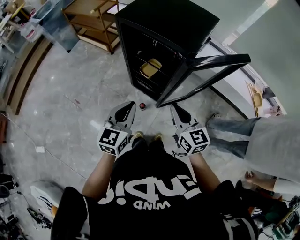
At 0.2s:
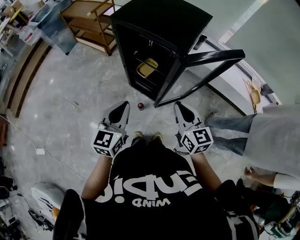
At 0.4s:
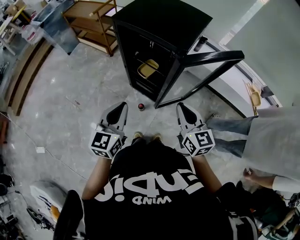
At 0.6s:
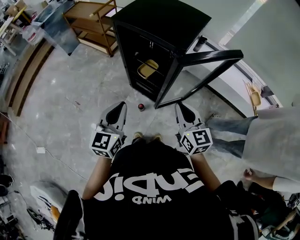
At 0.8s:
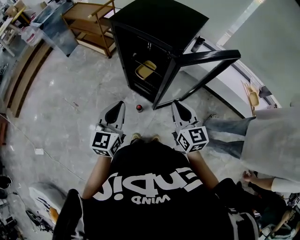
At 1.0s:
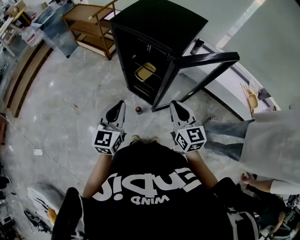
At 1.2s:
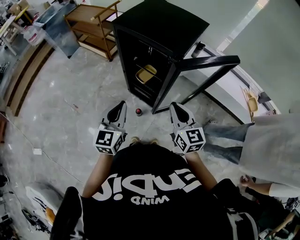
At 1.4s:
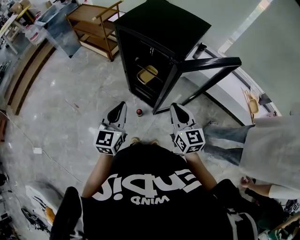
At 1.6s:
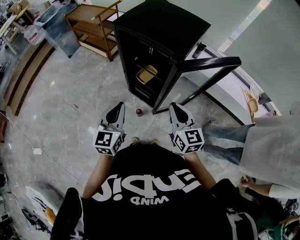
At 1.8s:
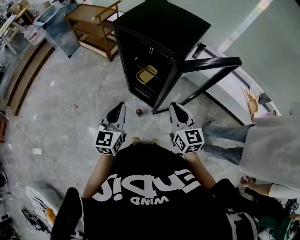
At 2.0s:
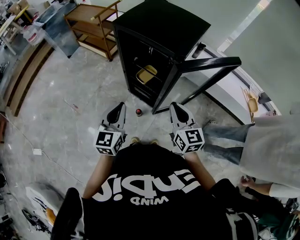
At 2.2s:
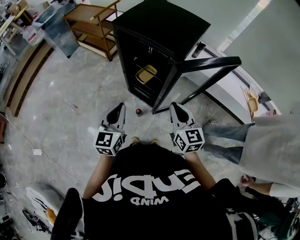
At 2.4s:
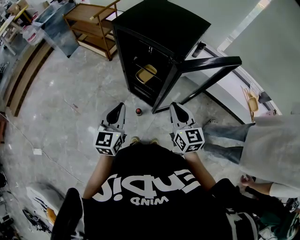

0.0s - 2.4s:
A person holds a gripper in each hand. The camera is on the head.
0.0s - 2.4s: The grippers make only small movements.

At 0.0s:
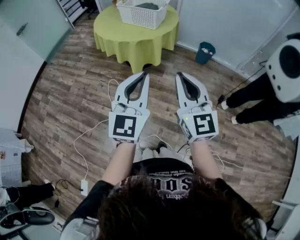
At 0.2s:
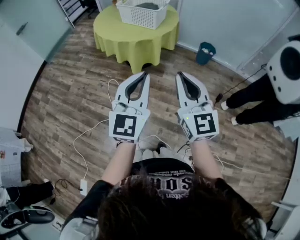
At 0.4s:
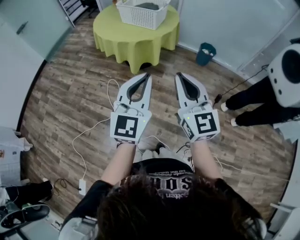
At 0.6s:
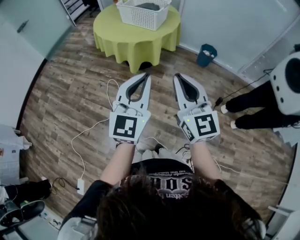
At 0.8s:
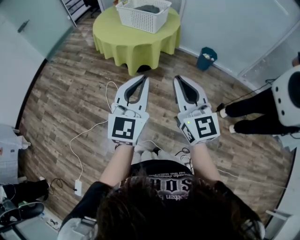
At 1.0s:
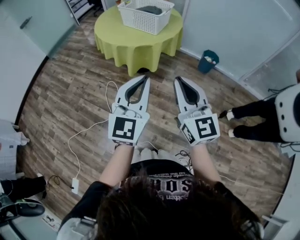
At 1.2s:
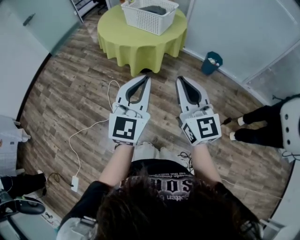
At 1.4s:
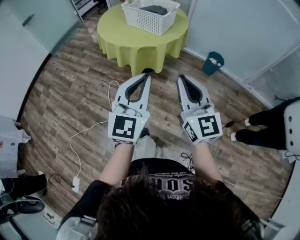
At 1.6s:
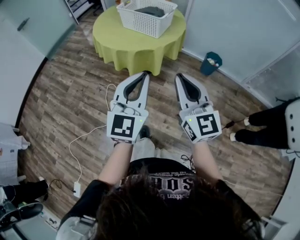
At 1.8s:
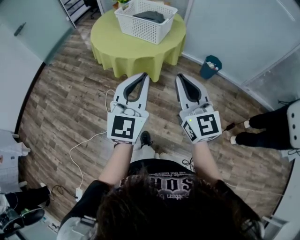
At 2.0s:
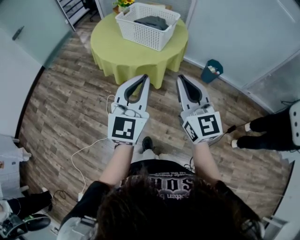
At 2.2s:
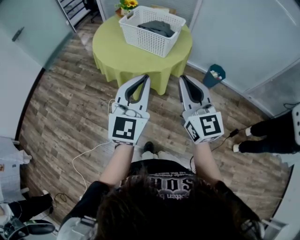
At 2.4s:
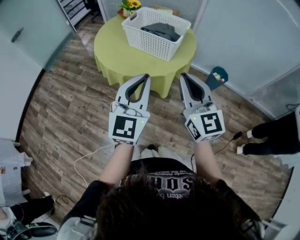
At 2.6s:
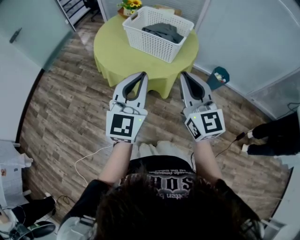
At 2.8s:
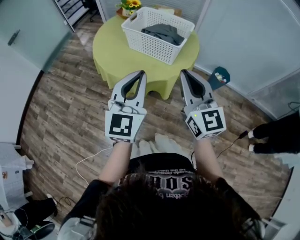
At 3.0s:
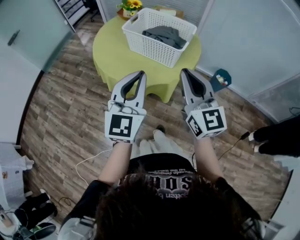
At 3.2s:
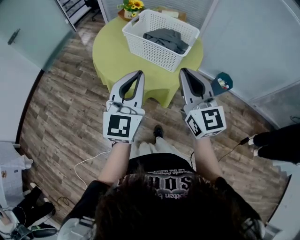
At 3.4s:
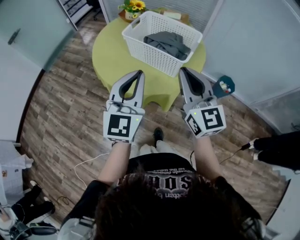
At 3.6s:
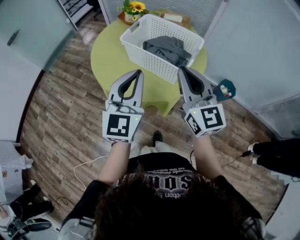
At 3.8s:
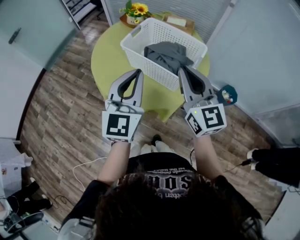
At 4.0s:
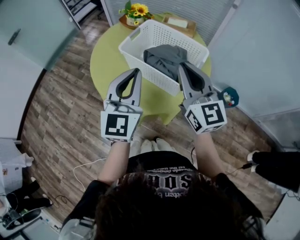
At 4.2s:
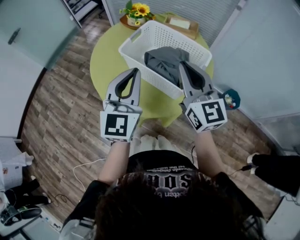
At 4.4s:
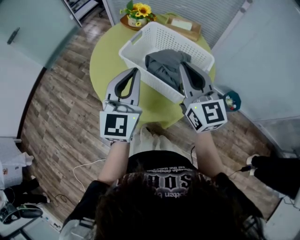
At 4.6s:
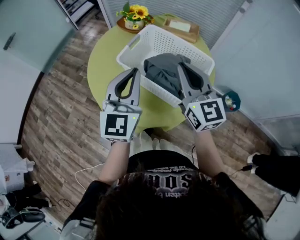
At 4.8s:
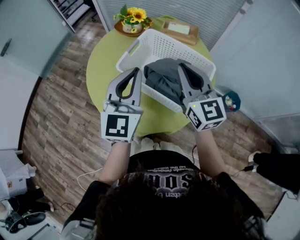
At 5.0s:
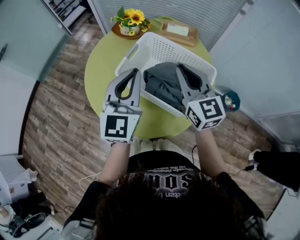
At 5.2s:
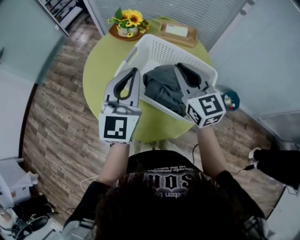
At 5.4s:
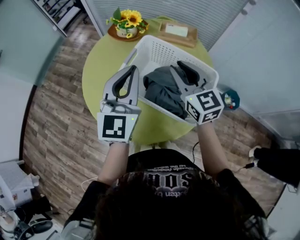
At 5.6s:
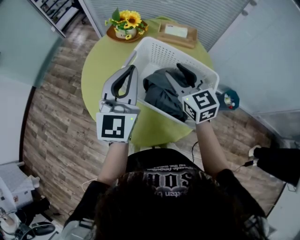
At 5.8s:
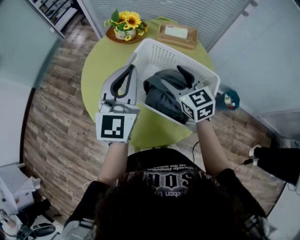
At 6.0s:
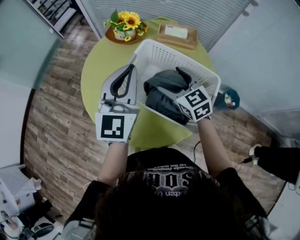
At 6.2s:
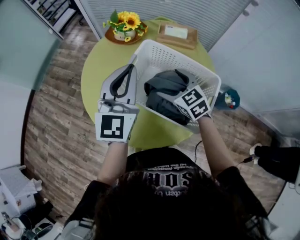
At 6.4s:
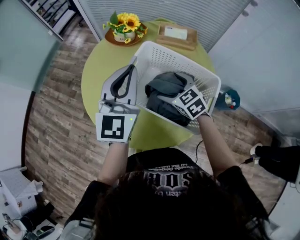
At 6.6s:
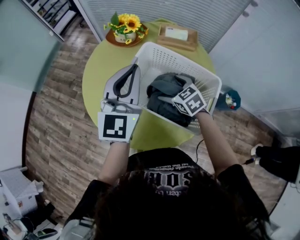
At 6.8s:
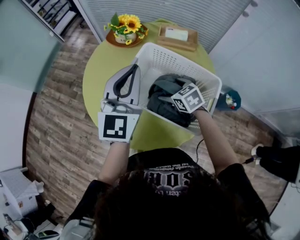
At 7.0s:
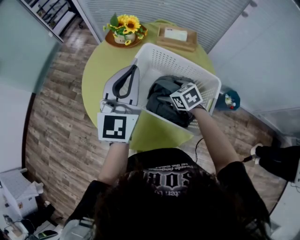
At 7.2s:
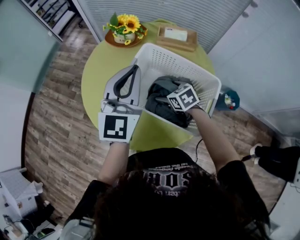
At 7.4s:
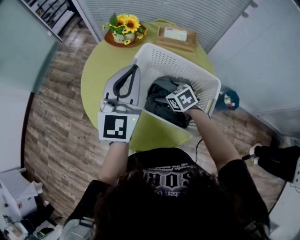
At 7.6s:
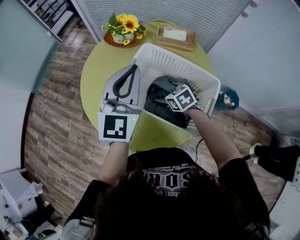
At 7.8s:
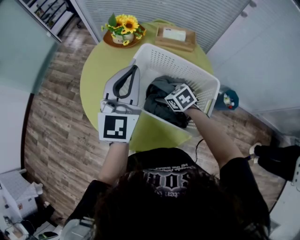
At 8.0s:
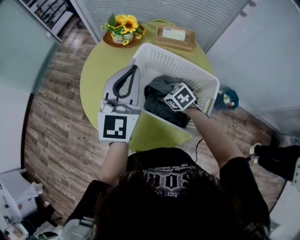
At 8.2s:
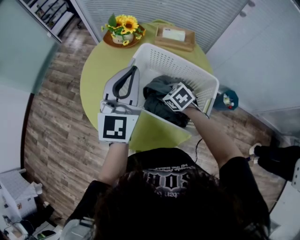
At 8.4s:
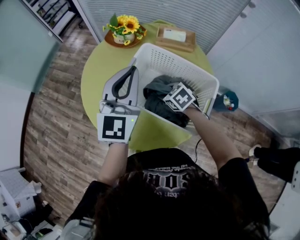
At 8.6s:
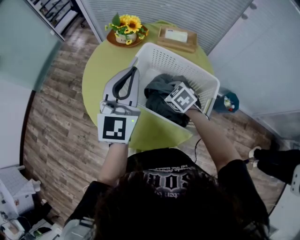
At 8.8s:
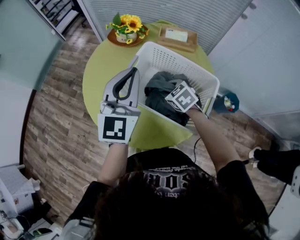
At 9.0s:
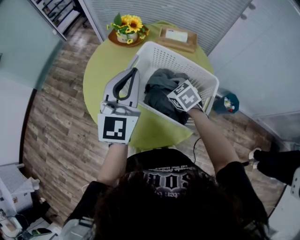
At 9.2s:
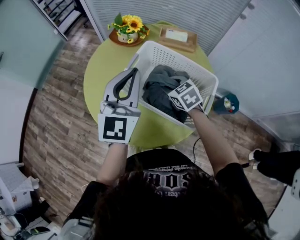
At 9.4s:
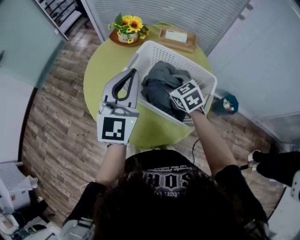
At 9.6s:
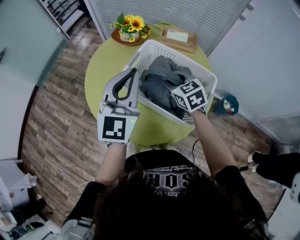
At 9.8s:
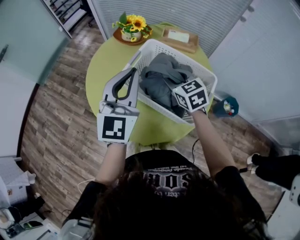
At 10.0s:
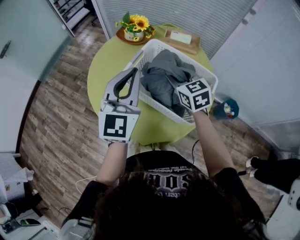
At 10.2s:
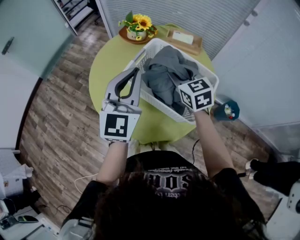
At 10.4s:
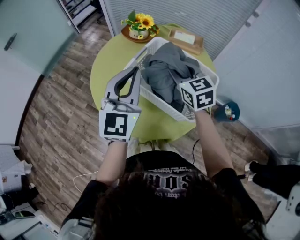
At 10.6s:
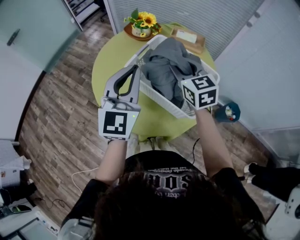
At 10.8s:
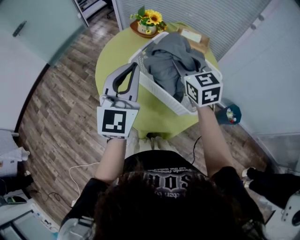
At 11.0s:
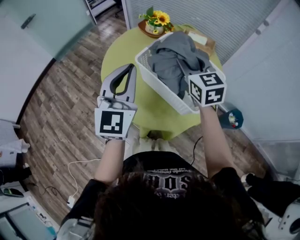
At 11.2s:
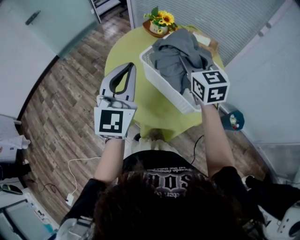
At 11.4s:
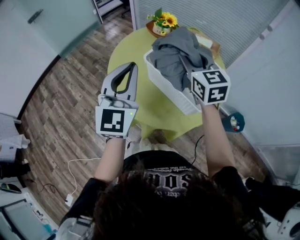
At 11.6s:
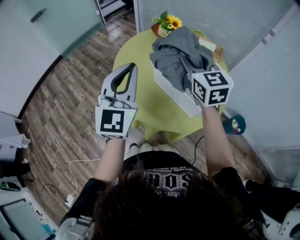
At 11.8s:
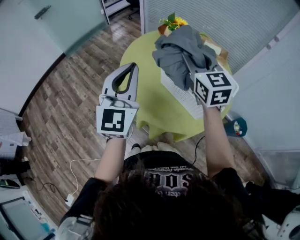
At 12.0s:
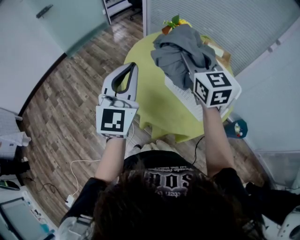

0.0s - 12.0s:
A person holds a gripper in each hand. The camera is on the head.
0.0s - 1.6s: The grippers both shift forward by some 15 cm.
1.6s - 3.0s: Both grippers move forward, approximately 25 cm.
3.0s - 4.4s: Both grippers travel together forward, approximately 25 cm.
4.4s - 6.0s: The left gripper shifts some 15 cm forward, while the right gripper is displaced forward and downward by some 20 cm, swivels about 30 degrees, and opens.
6.0s - 7.6s: The right gripper is displaced downward by some 15 cm, and rotates approximately 30 degrees.
7.6s - 9.0s: The right gripper travels upward by approximately 5 cm, and closes its fingers.
9.0s - 10.4s: The right gripper moves upward, some 15 cm, and rotates about 30 degrees. Meanwhile the left gripper moves backward, some 5 cm.
10.4s - 12.0s: The right gripper goes approximately 20 cm to the left and upward; the left gripper heads to the left, covering about 15 cm.

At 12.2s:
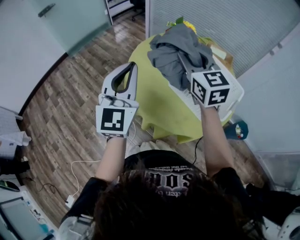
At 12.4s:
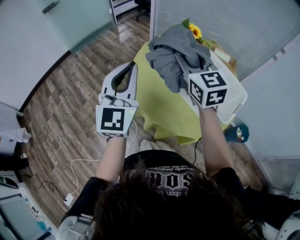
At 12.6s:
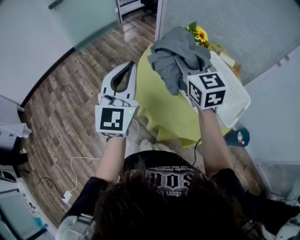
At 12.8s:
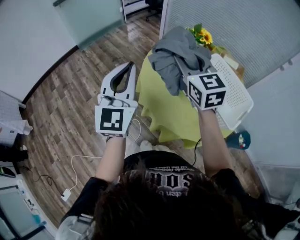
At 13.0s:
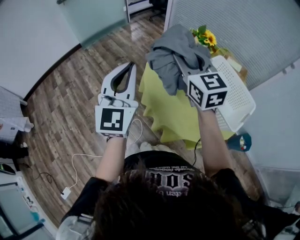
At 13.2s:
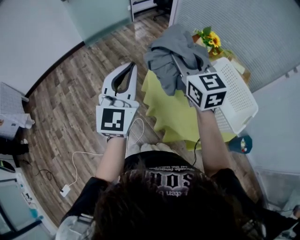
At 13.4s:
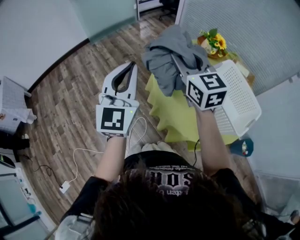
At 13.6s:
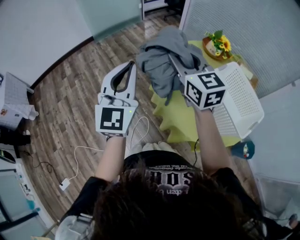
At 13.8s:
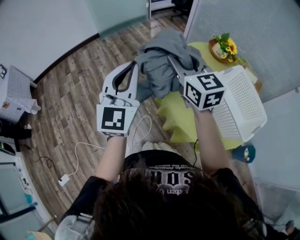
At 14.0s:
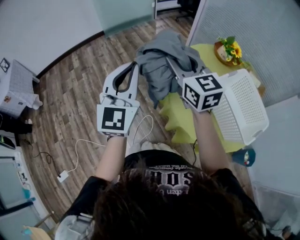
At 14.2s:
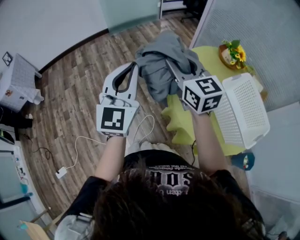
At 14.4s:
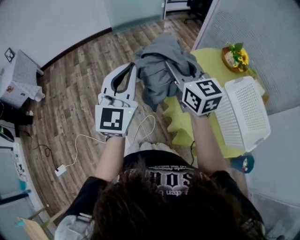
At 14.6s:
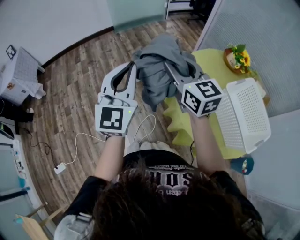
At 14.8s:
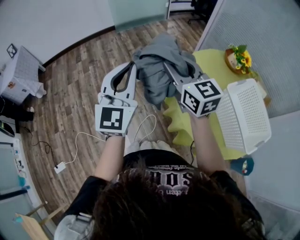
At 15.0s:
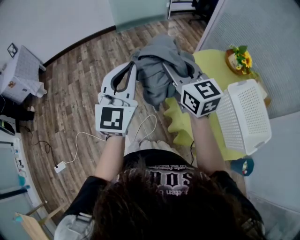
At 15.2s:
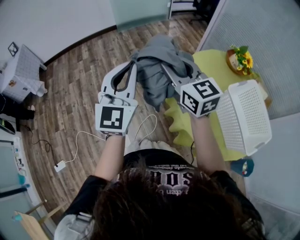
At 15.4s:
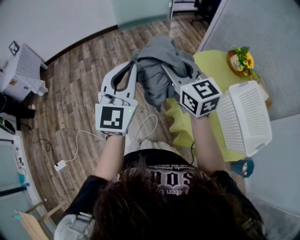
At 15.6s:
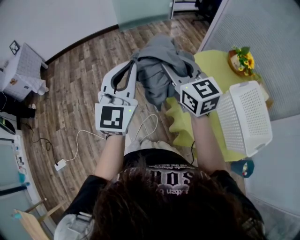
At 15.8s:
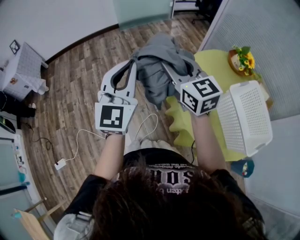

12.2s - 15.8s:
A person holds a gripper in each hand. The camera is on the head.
12.2s - 14.0s: The grippers both shift to the left by some 20 cm. The right gripper turns by about 20 degrees.
14.0s - 15.8s: The grippers both shift to the left by approximately 5 cm.

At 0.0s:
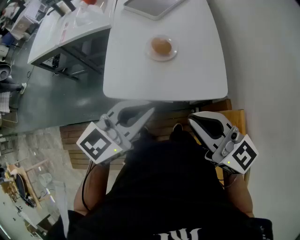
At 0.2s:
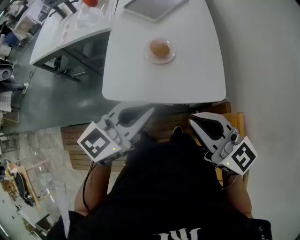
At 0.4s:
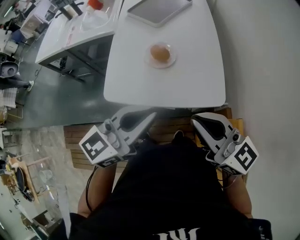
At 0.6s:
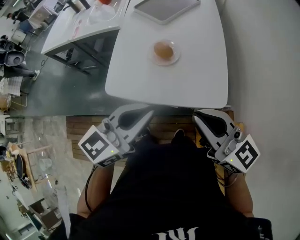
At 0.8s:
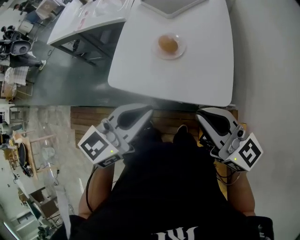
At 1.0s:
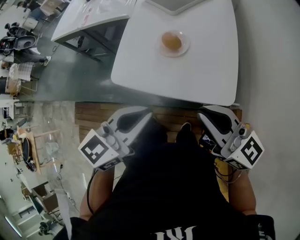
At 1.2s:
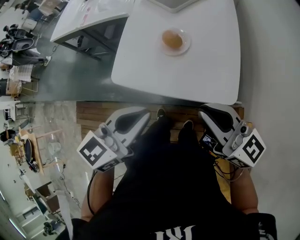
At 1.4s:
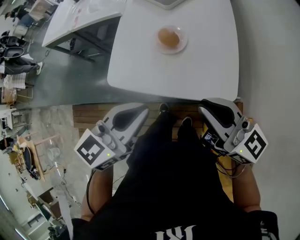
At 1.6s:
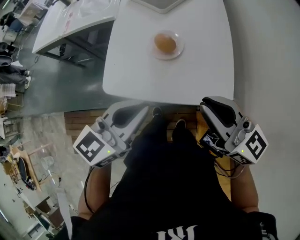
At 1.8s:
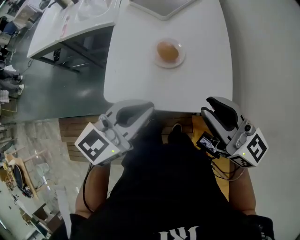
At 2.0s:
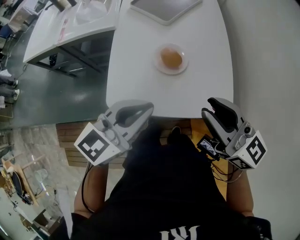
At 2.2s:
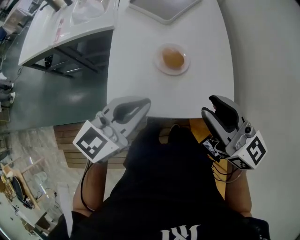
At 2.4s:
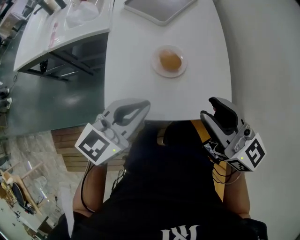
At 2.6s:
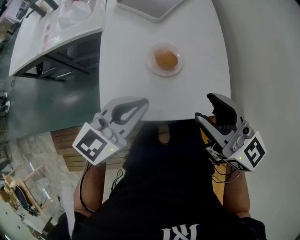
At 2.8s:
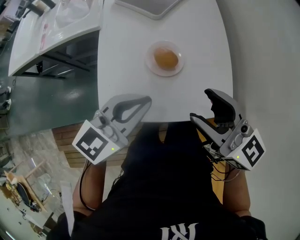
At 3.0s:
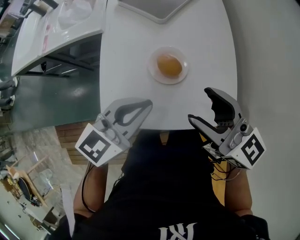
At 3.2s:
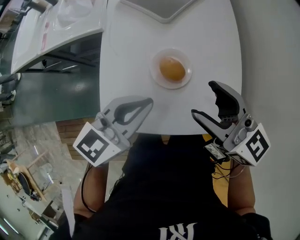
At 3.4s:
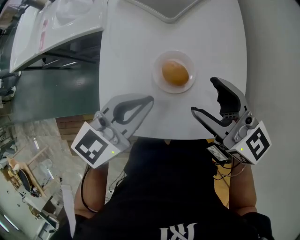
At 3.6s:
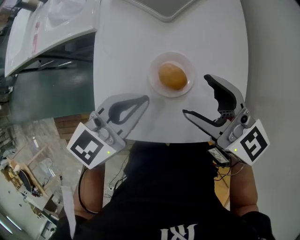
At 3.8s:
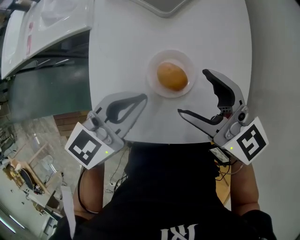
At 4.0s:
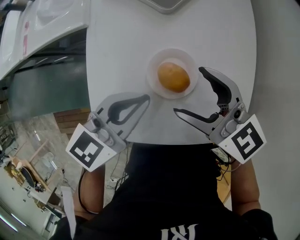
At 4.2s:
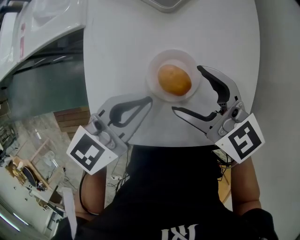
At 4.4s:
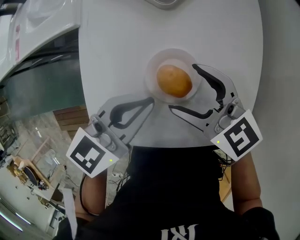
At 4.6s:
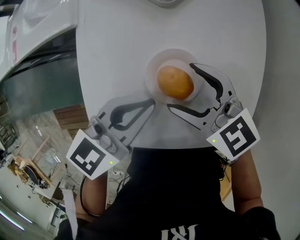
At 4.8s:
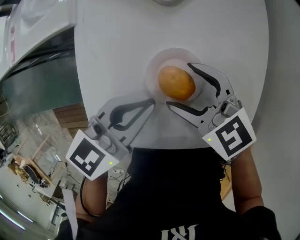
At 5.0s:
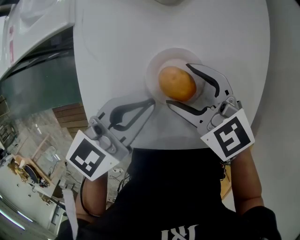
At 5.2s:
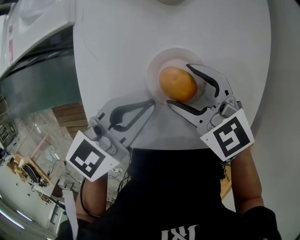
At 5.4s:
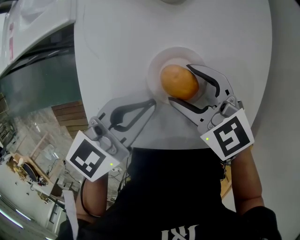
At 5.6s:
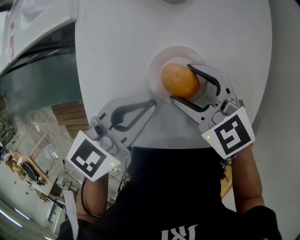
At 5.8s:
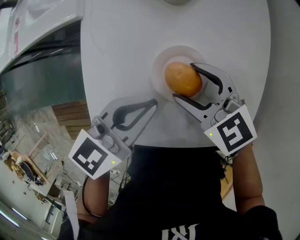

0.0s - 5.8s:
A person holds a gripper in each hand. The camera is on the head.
0.0s - 1.4s: The right gripper is displaced to the right by some 5 cm.
1.4s - 2.8s: The grippers both shift forward and to the left by approximately 15 cm. The right gripper opens.
2.8s - 4.4s: The left gripper moves forward and downward, about 15 cm. The right gripper goes some 25 cm downward and forward, turns by roughly 30 degrees, and opens its fingers.
4.4s - 5.8s: The grippers stay close to where they were, moving slightly.
